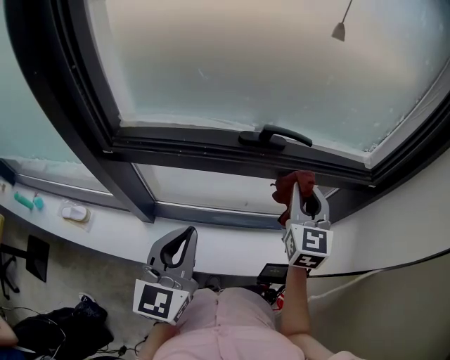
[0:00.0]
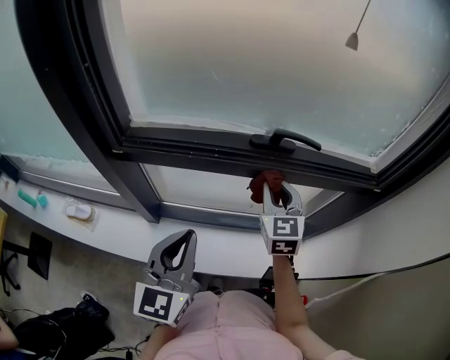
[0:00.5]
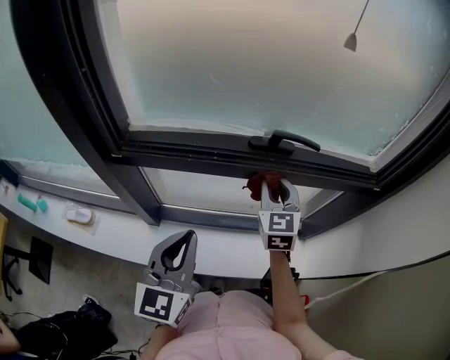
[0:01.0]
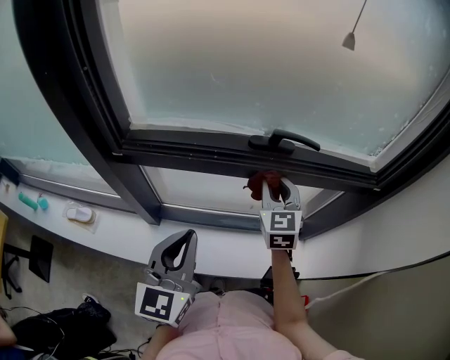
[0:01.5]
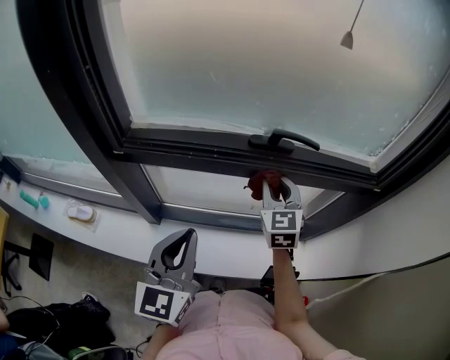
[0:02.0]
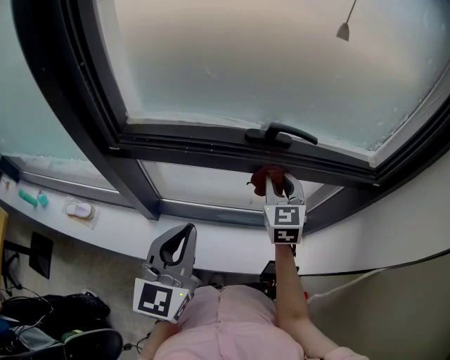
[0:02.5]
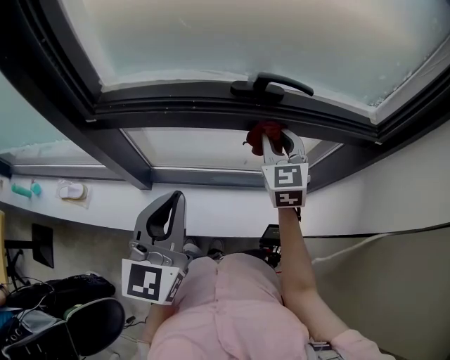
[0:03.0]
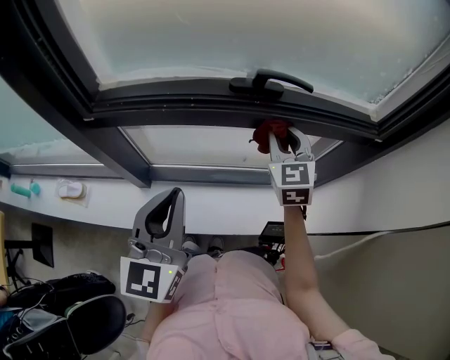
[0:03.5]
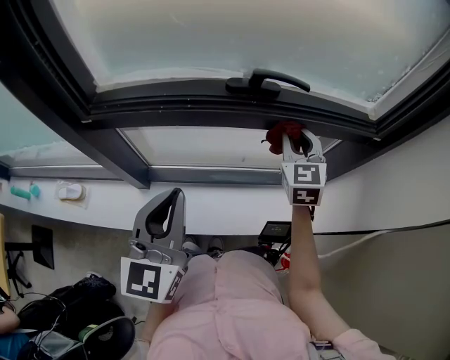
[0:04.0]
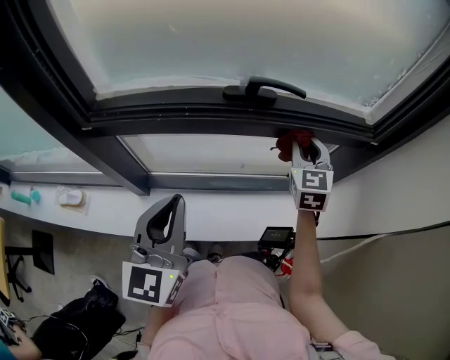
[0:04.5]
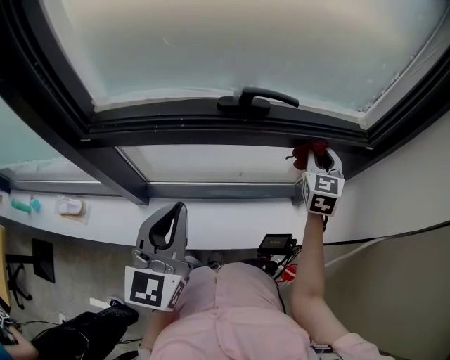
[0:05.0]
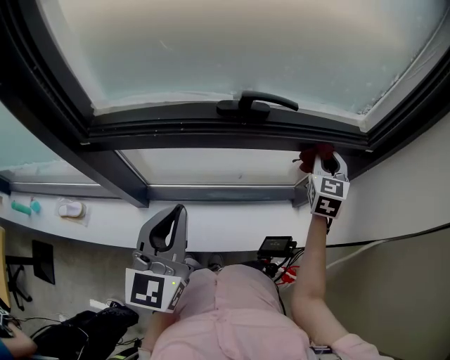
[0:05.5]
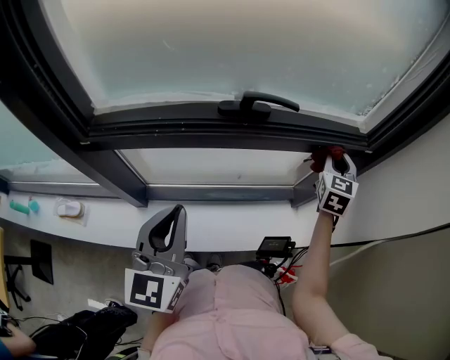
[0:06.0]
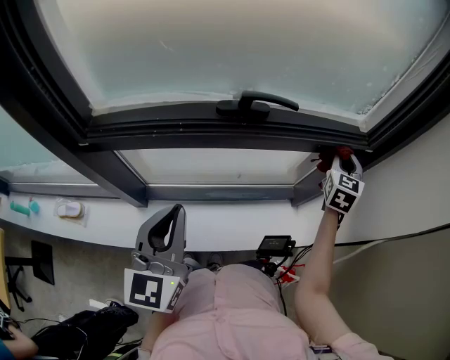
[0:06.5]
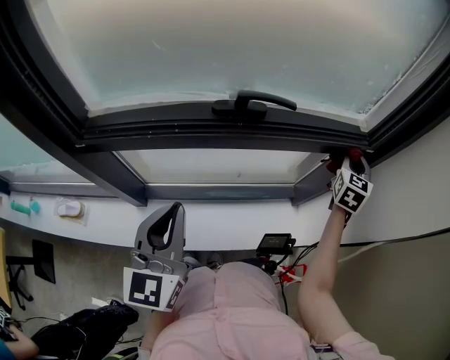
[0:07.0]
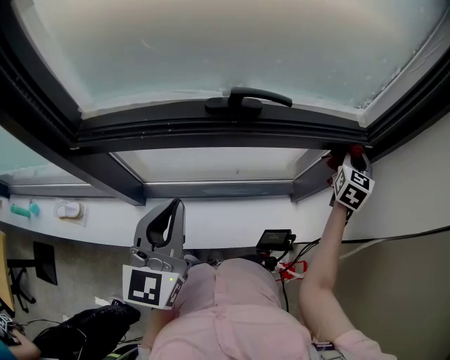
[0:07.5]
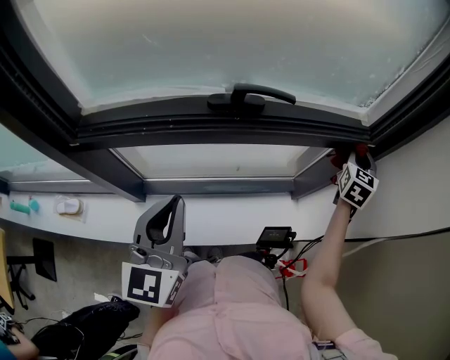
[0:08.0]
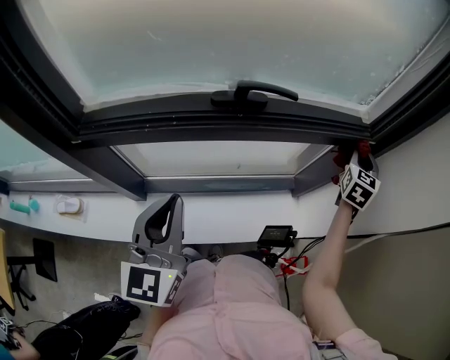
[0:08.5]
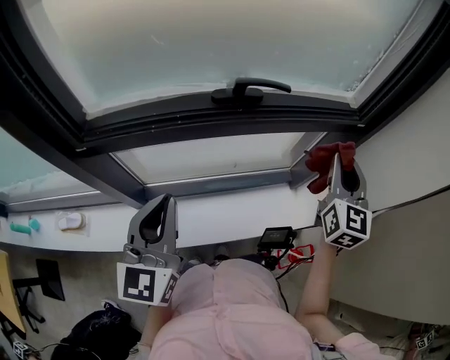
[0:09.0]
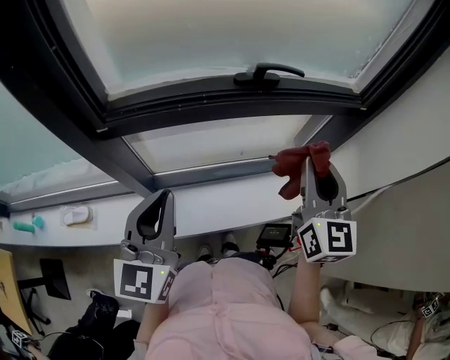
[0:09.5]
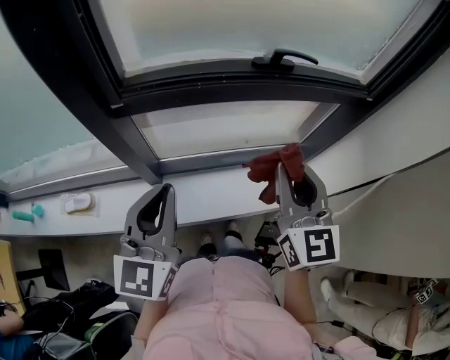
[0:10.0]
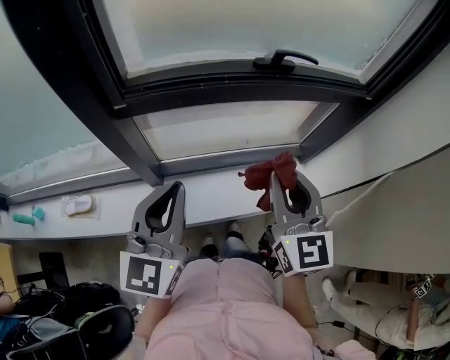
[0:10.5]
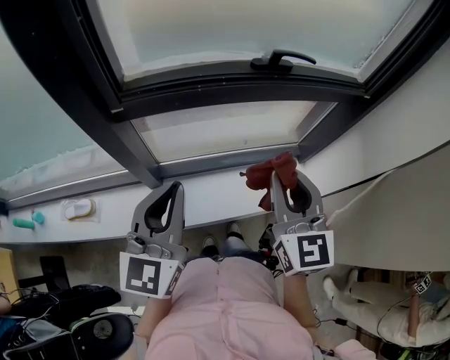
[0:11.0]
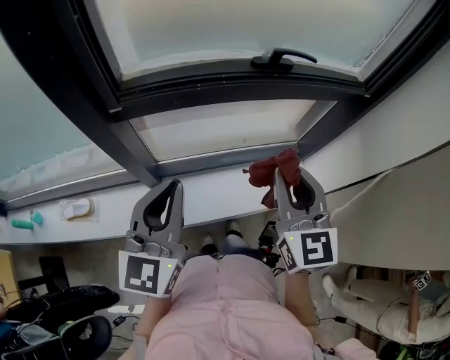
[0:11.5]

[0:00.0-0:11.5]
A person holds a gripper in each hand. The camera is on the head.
0:00.0 to 0:02.0: The right gripper heads to the left, covering about 10 cm.
0:02.0 to 0:04.0: The right gripper heads to the right, covering about 10 cm.
0:04.0 to 0:06.0: The right gripper moves to the right, approximately 15 cm, and turns by about 20 degrees.
0:06.0 to 0:07.5: The right gripper heads to the right, covering approximately 10 cm.
0:07.5 to 0:09.5: The left gripper goes about 15 cm backward and to the left, while the right gripper goes about 35 cm backward and to the left, and rotates approximately 30 degrees.
0:09.5 to 0:11.5: The right gripper moves to the left and backward, roughly 15 cm.

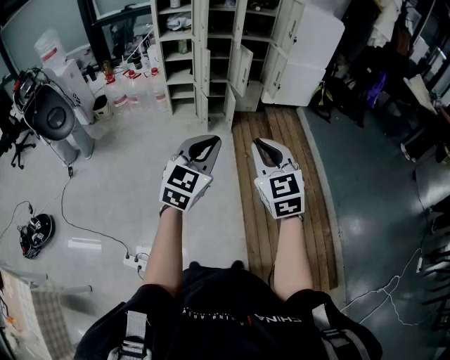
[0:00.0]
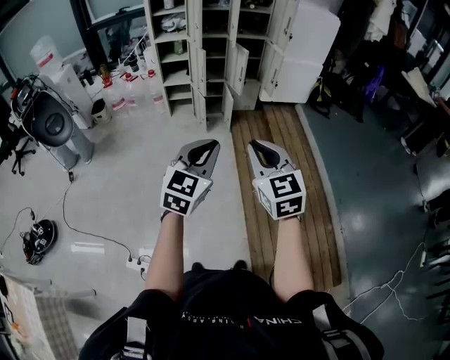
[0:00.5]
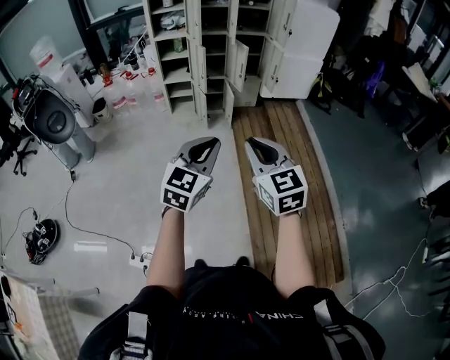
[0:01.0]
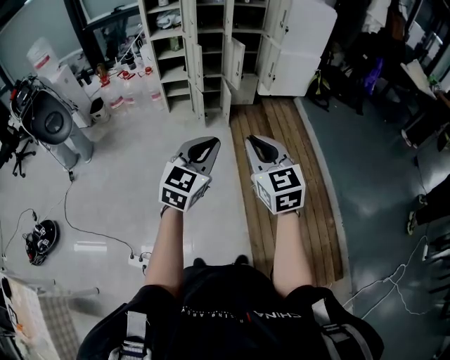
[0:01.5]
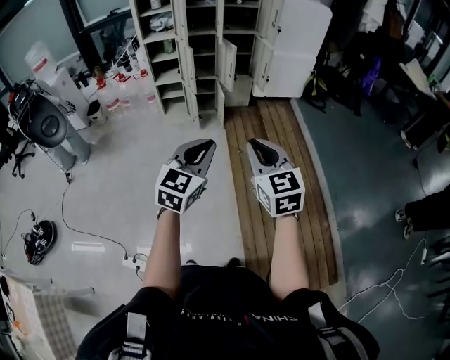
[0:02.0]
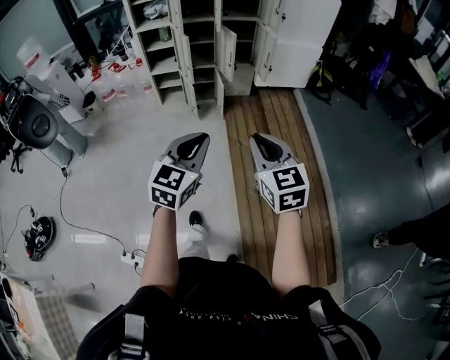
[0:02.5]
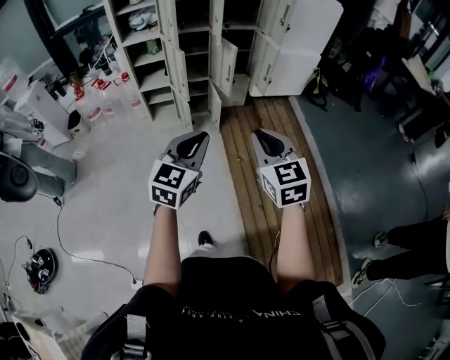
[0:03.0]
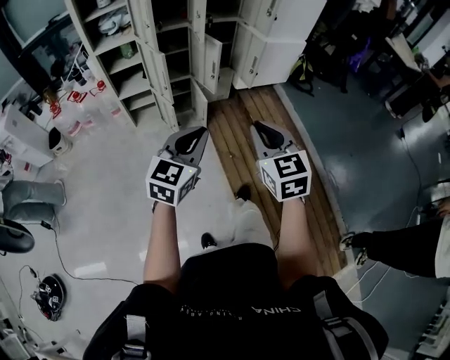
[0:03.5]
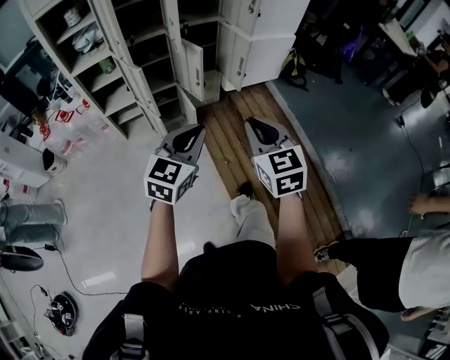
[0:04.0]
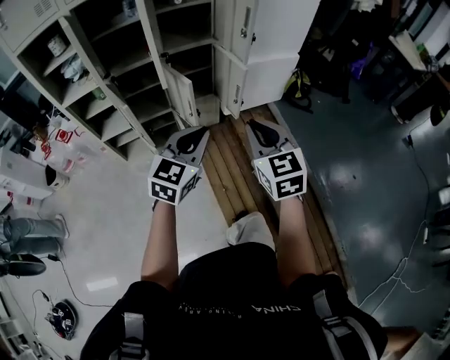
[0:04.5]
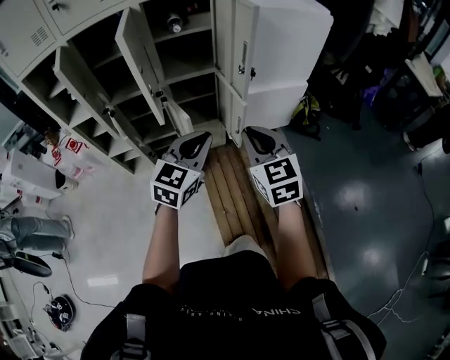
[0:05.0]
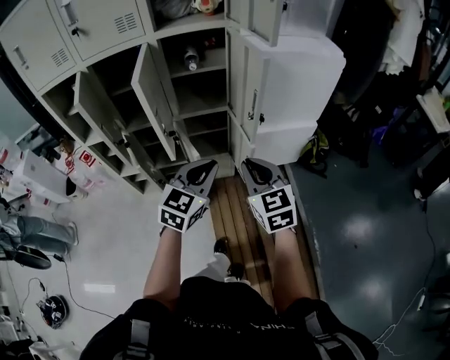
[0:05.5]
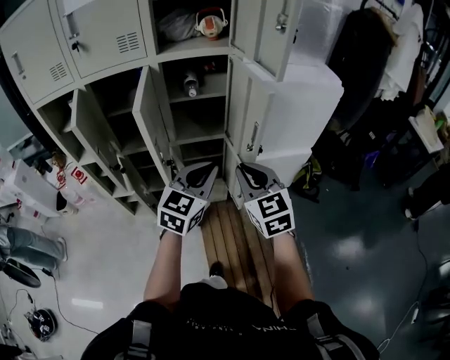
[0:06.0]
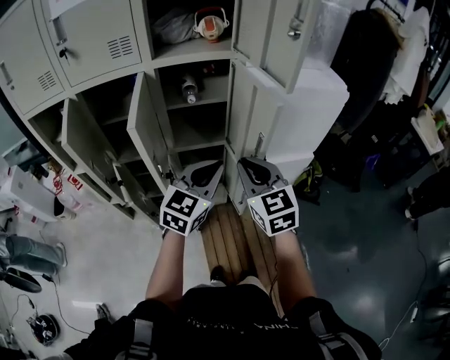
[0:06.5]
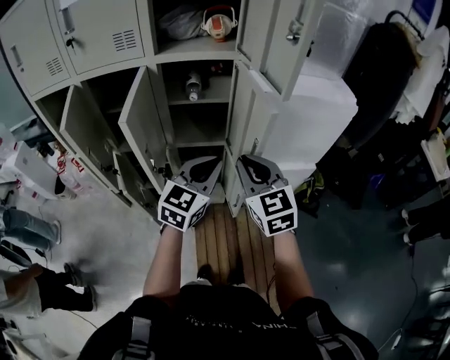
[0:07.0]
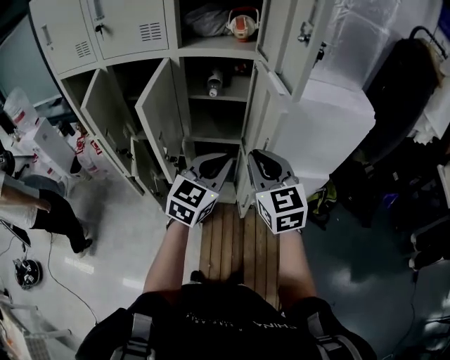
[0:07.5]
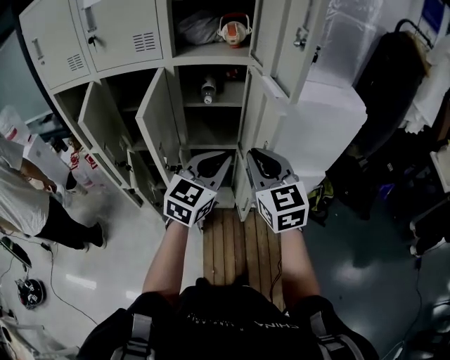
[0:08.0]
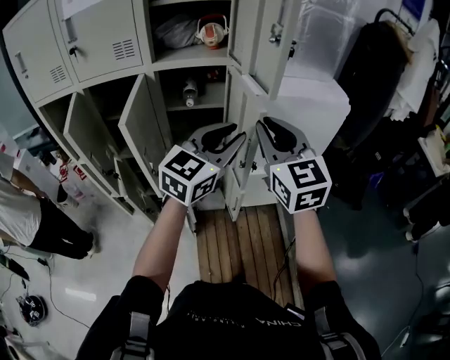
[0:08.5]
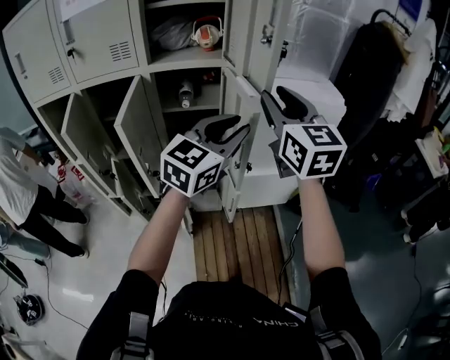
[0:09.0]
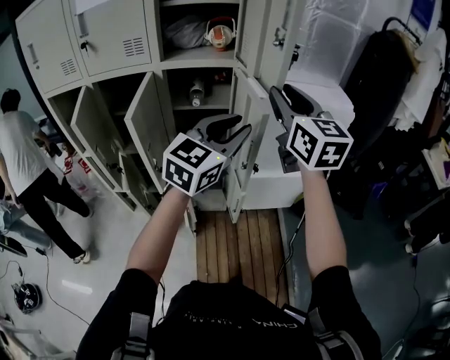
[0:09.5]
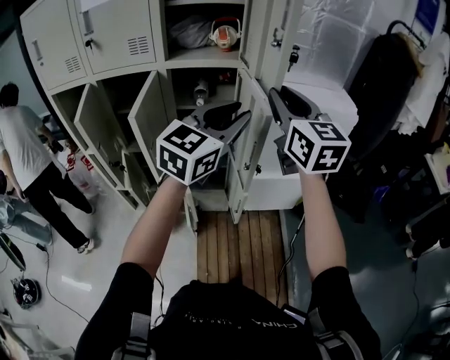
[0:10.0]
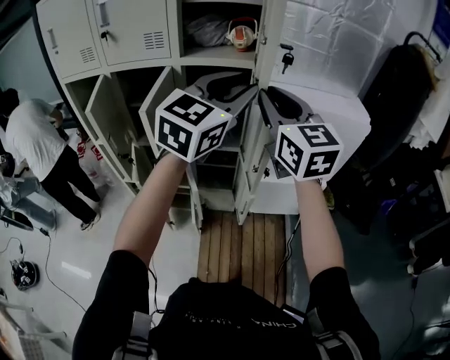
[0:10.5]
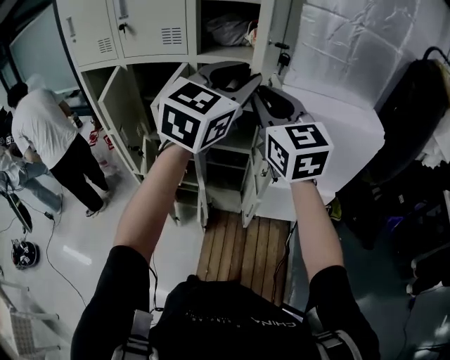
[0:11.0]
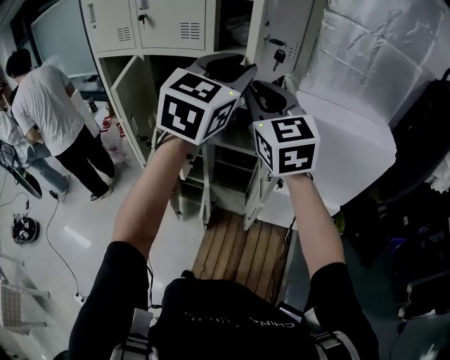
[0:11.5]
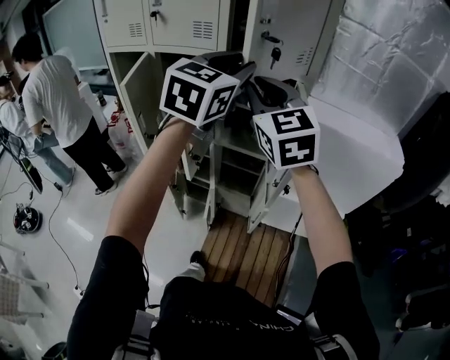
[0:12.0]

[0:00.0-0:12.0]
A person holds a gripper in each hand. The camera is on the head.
0:00.0 to 0:02.0: Both grippers travel together to the right, roughly 10 cm.
0:02.0 to 0:04.0: The two grippers travel together, forward, some 50 cm.
0:04.0 to 0:06.0: The pair of grippers is taken forward, approximately 50 cm. The grippers both shift upward by roughly 20 cm.
0:06.0 to 0:08.0: The right gripper moves forward and upward, roughly 10 cm, while the left gripper is displaced forward by approximately 5 cm.
0:08.0 to 0:10.0: The left gripper is displaced upward by approximately 15 cm, and opens. Meanwhile the right gripper moves upward, forward and to the right, some 20 cm.
0:10.0 to 0:12.0: The right gripper changes place by roughly 15 cm, and changes its angle by some 30 degrees, while the left gripper shifts by some 15 cm, and swivels about 30 degrees.

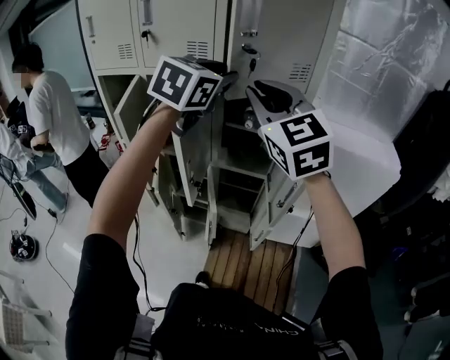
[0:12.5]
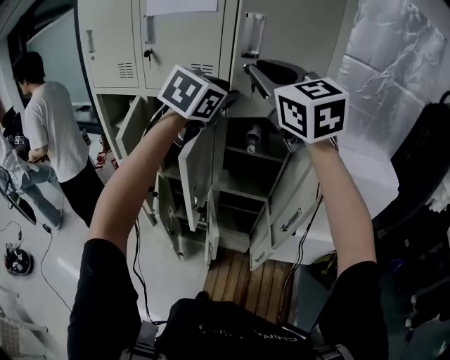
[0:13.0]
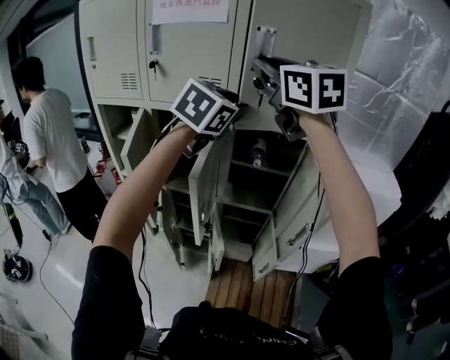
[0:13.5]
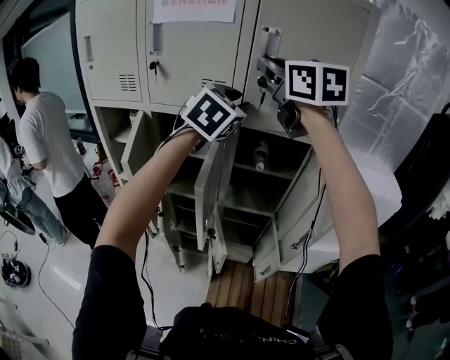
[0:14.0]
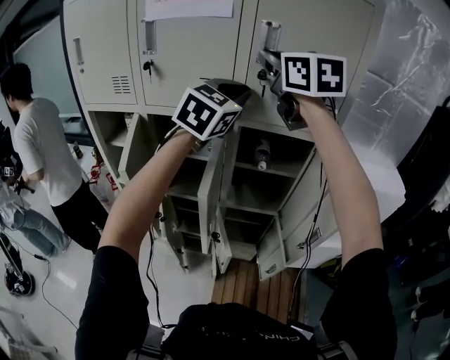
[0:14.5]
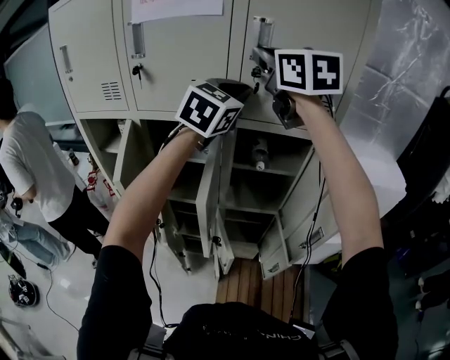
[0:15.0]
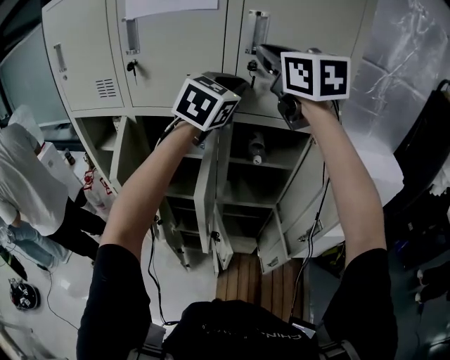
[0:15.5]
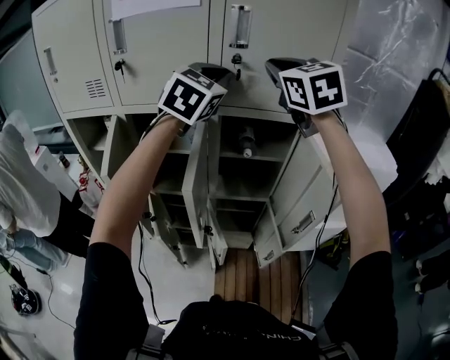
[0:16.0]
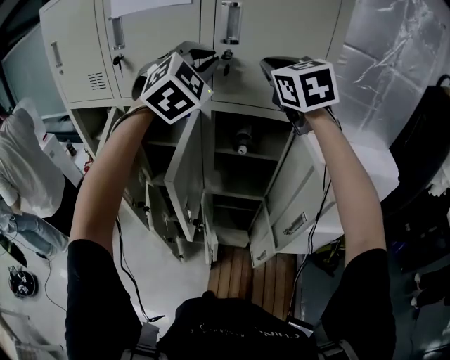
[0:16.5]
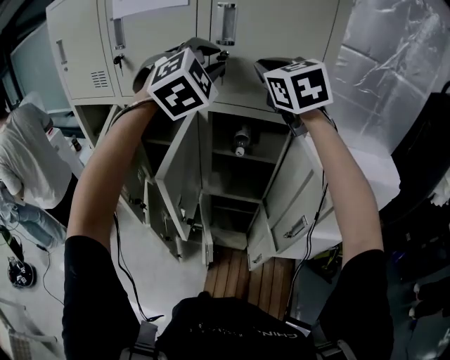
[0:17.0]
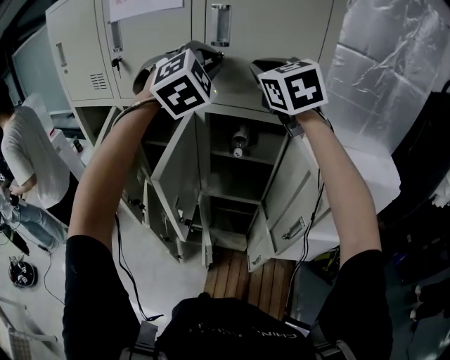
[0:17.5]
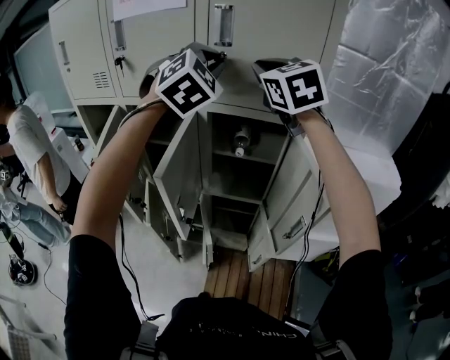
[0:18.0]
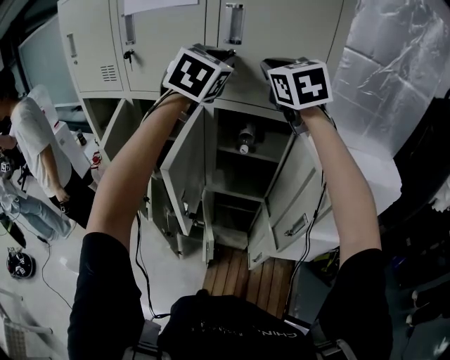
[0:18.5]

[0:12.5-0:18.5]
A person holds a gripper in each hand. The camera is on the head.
0:12.5 to 0:14.5: The right gripper moves forward and upward, roughly 25 cm; the left gripper travels forward by roughly 10 cm, and closes.
0:14.5 to 0:16.5: The left gripper changes its angle by some 30 degrees; the right gripper heads to the right and downward, covering roughly 10 cm.
0:16.5 to 0:18.5: The left gripper changes its angle by approximately 30 degrees.
